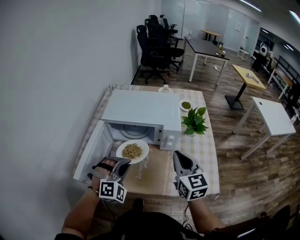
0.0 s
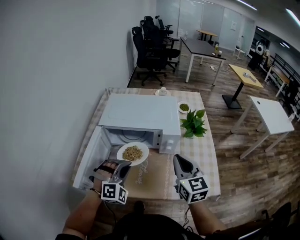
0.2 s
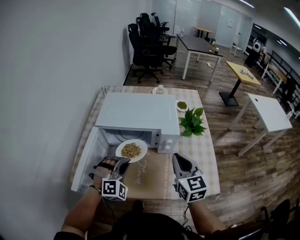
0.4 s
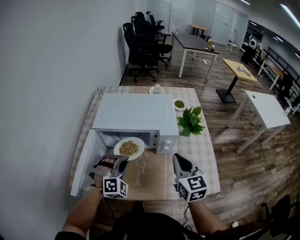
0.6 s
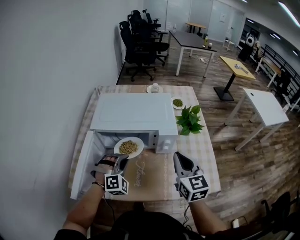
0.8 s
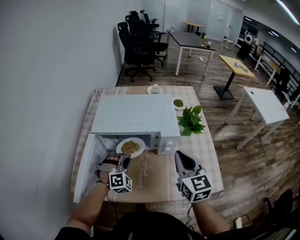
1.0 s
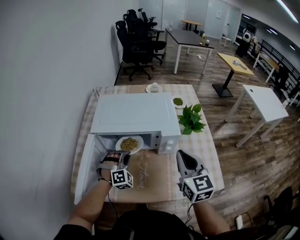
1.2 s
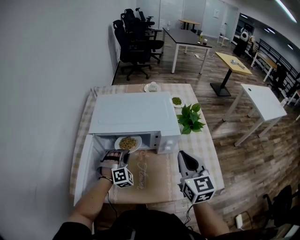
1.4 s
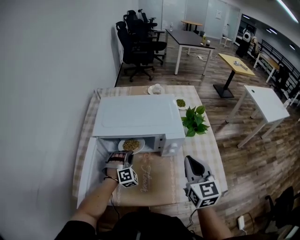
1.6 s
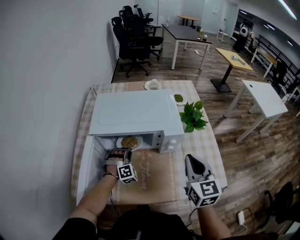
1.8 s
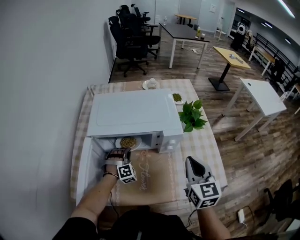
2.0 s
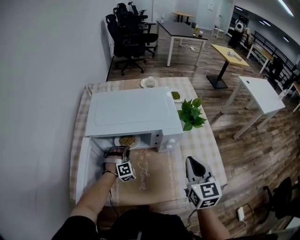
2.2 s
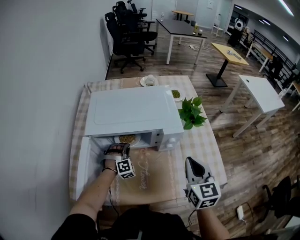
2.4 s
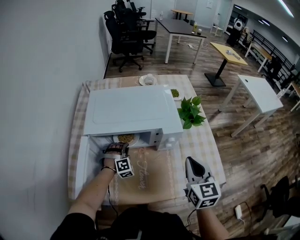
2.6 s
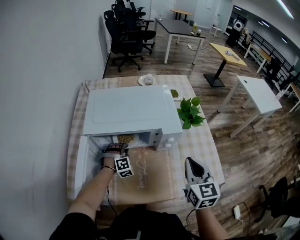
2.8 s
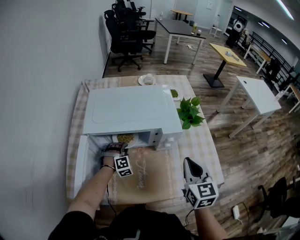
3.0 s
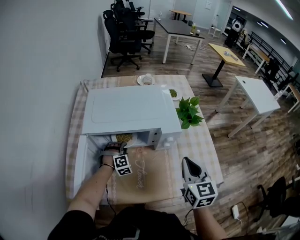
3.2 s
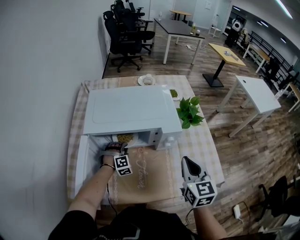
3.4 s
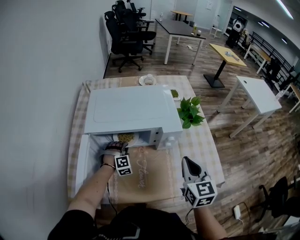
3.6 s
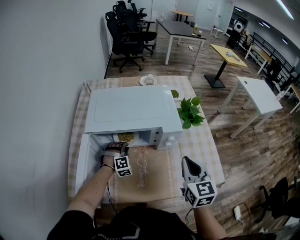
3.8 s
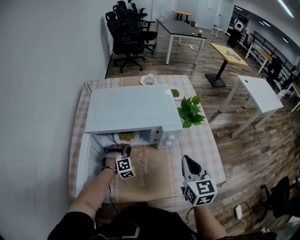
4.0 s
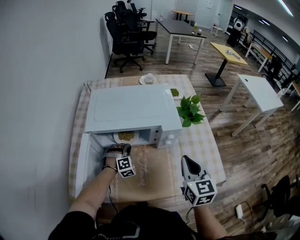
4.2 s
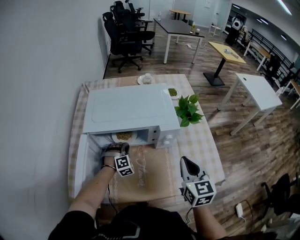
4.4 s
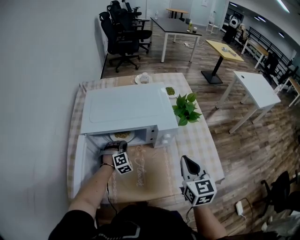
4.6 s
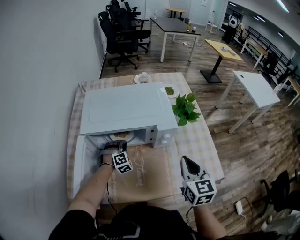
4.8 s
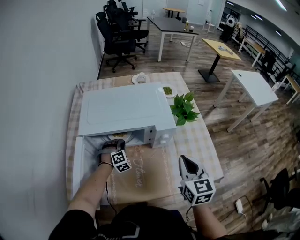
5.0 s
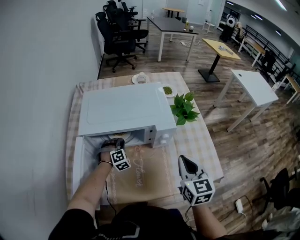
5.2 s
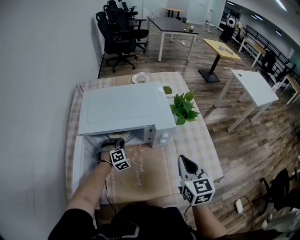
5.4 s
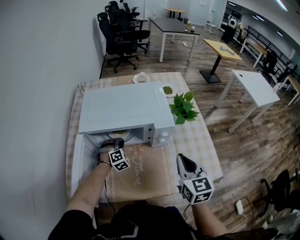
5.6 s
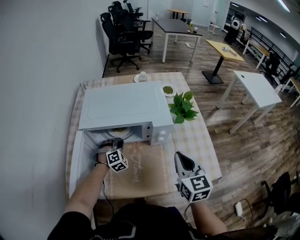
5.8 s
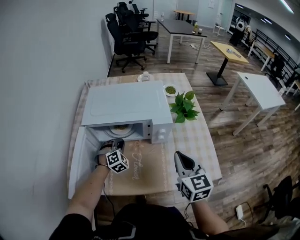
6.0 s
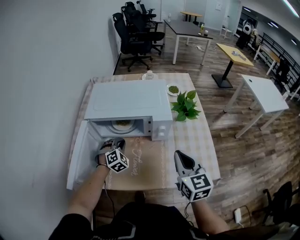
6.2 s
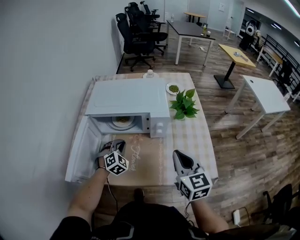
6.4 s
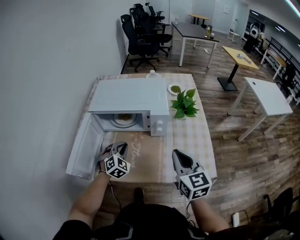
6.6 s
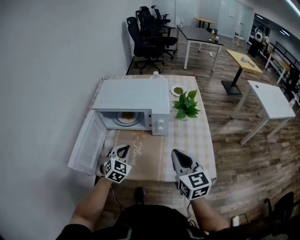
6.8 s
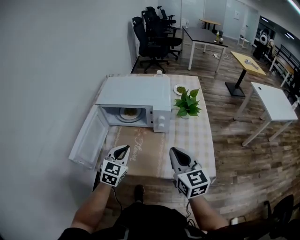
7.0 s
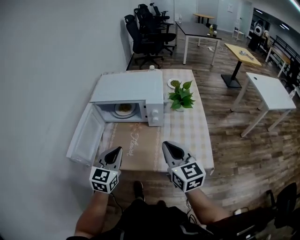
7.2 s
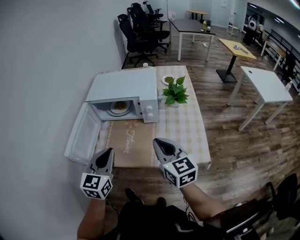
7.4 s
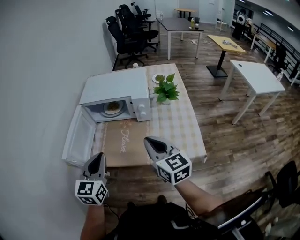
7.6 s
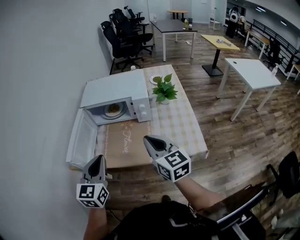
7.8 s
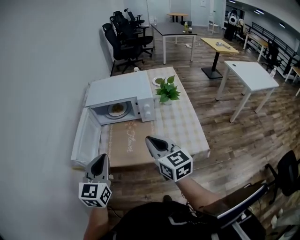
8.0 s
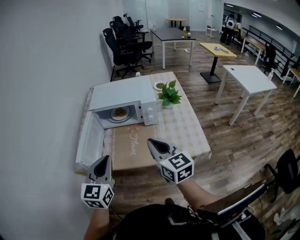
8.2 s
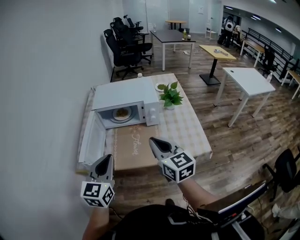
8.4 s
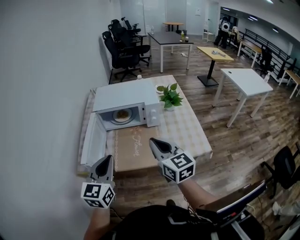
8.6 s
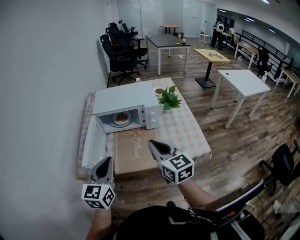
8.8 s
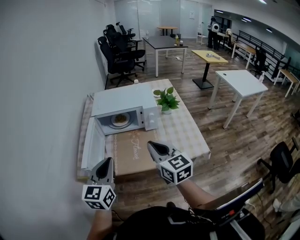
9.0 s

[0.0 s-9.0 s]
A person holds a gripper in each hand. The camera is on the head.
0.0 to 1.6 s: The left gripper moves forward and downward, some 25 cm.
1.6 to 3.0 s: The left gripper moves downward, roughly 10 cm.
3.0 to 4.4 s: The grippers make only small movements.
4.4 to 6.0 s: The grippers move only a little.
6.0 to 7.6 s: The right gripper goes some 15 cm backward and upward, and rotates some 20 degrees. The left gripper is displaced backward and upward by roughly 40 cm, and twists about 60 degrees counterclockwise, seen from behind.
7.6 to 9.0 s: The left gripper shifts approximately 10 cm to the left and upward. The right gripper moves to the left, about 10 cm.

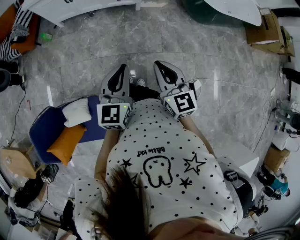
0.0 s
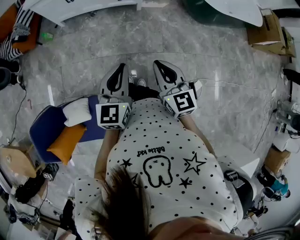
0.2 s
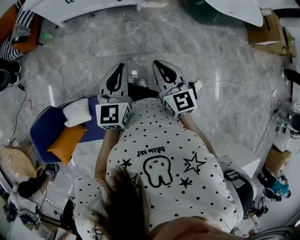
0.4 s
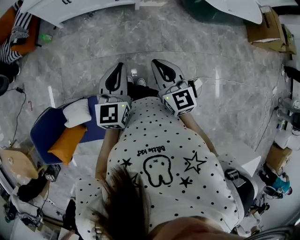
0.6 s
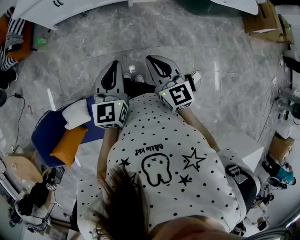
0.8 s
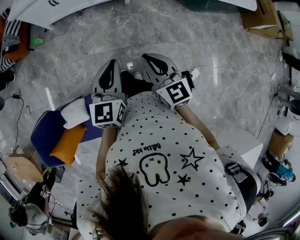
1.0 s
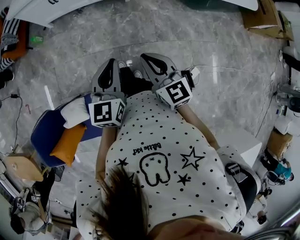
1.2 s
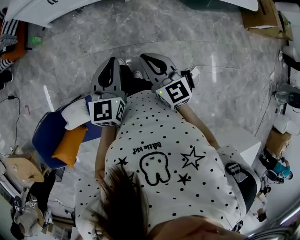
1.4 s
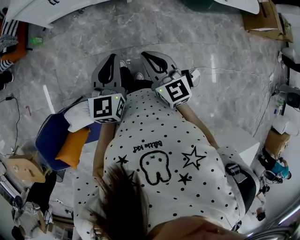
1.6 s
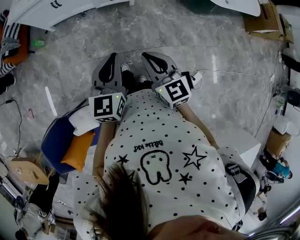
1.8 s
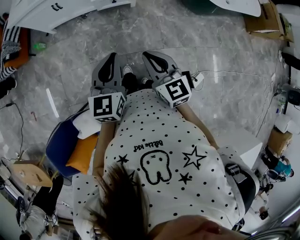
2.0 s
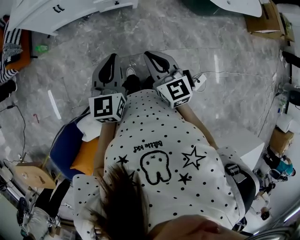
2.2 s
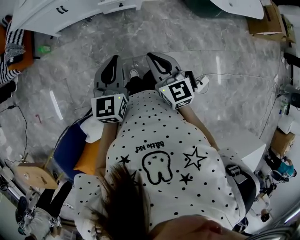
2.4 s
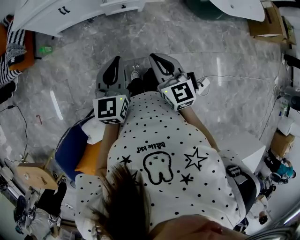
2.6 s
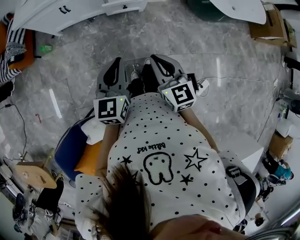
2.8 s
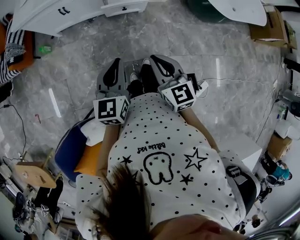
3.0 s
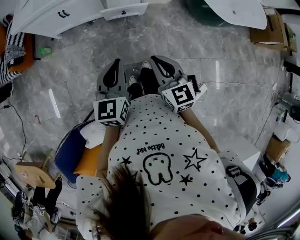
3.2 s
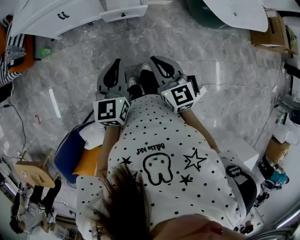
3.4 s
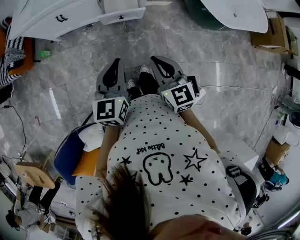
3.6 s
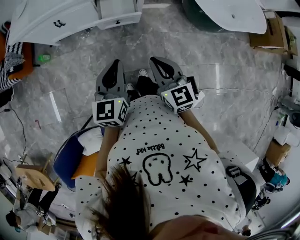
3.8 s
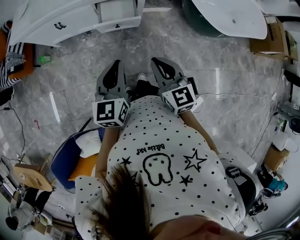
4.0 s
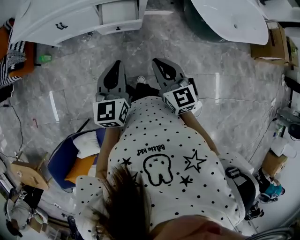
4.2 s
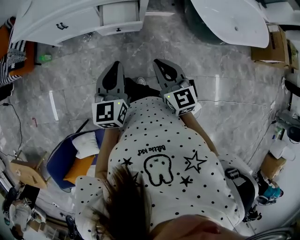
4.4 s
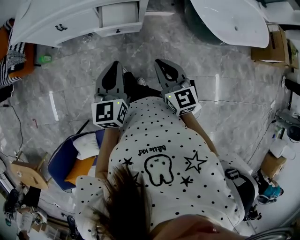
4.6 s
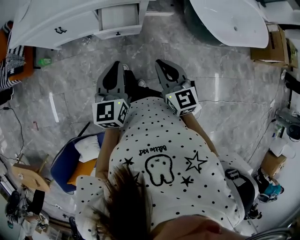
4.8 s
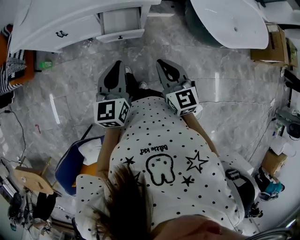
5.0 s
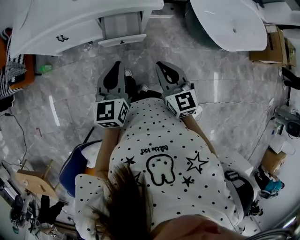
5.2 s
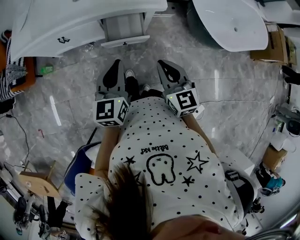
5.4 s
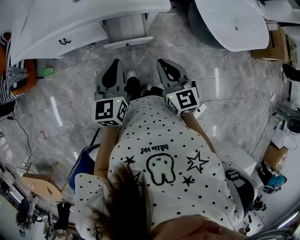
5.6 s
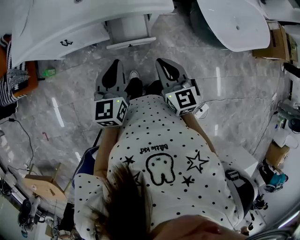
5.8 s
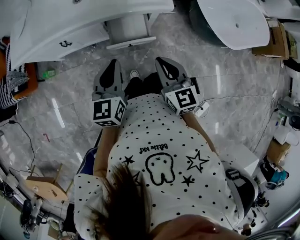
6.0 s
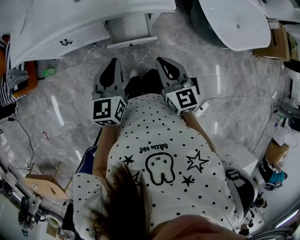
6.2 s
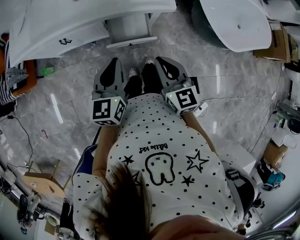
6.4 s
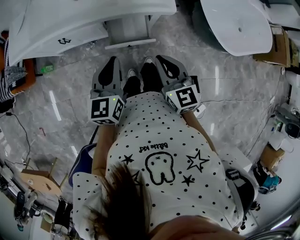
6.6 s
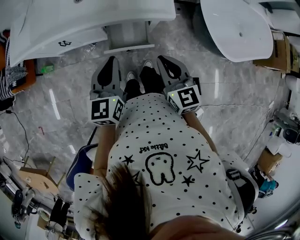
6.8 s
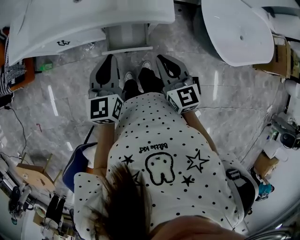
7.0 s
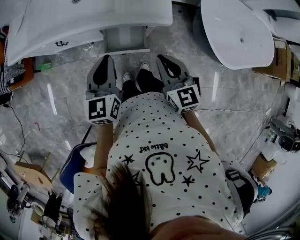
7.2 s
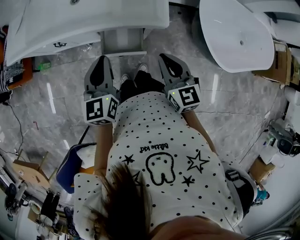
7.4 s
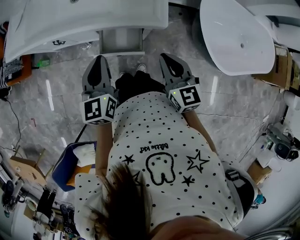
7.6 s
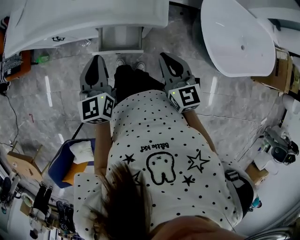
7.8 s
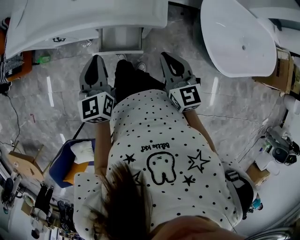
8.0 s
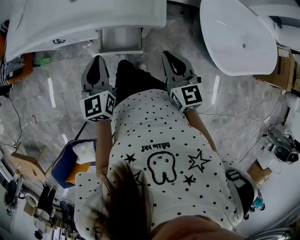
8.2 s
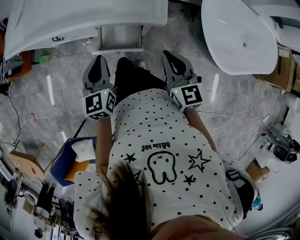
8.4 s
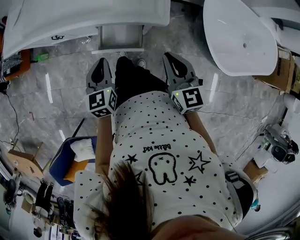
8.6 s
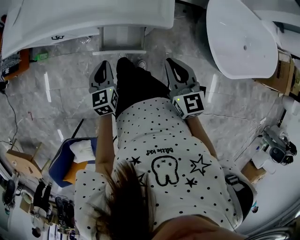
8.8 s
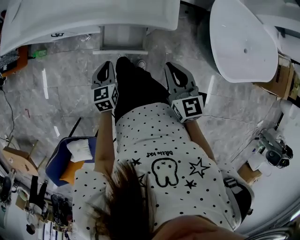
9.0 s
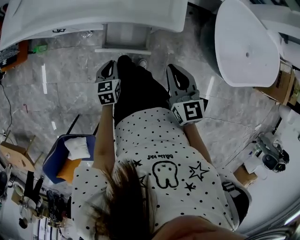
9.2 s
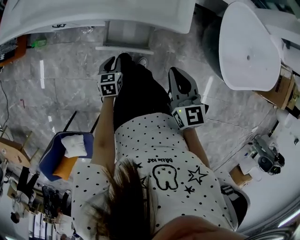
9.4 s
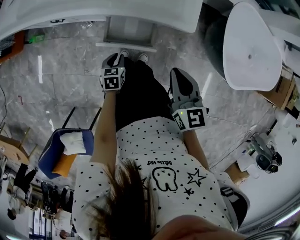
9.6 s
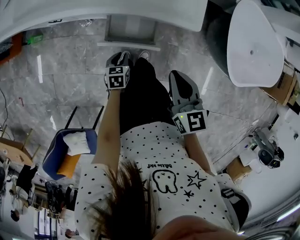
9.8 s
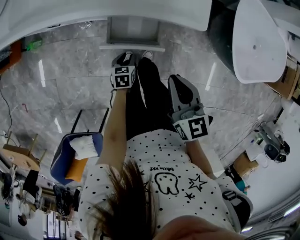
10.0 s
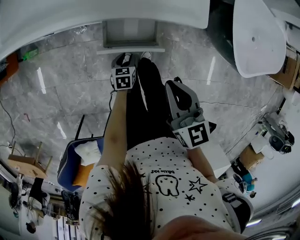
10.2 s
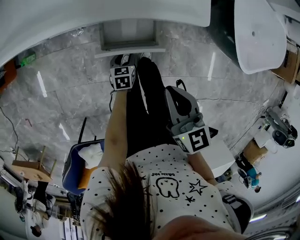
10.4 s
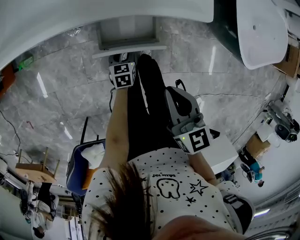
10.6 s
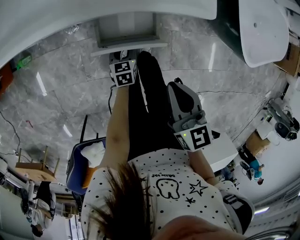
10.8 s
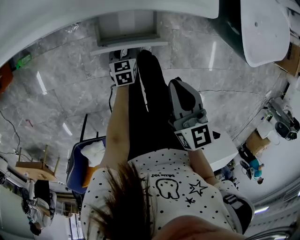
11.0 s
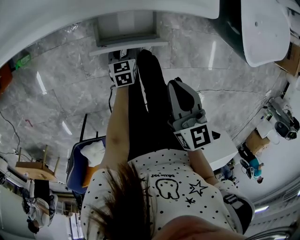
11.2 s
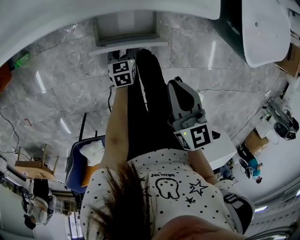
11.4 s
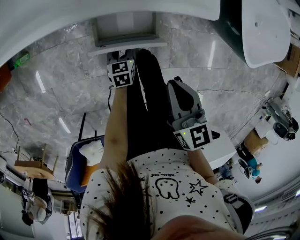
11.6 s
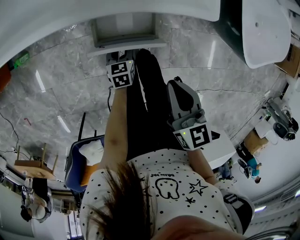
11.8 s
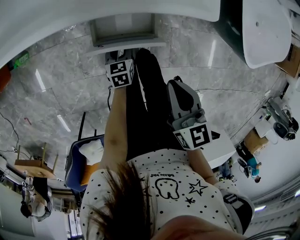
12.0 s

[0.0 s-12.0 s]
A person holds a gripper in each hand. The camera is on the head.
0.0 to 1.6 s: The two grippers go roughly 10 cm forward.
1.6 to 3.0 s: The right gripper is displaced forward by approximately 15 cm, while the left gripper shifts some 15 cm forward and to the left.
3.0 to 4.4 s: The left gripper shifts about 15 cm forward and to the right. Meanwhile the right gripper moves to the right and forward, roughly 15 cm.
4.4 to 6.0 s: The two grippers go approximately 20 cm forward and to the left.
6.0 to 7.6 s: The left gripper heads forward and to the right, covering approximately 10 cm. Meanwhile the right gripper is displaced to the right and forward by about 15 cm.
7.6 to 9.0 s: The left gripper travels downward by some 20 cm, and rotates about 20 degrees.
9.0 to 10.4 s: The left gripper is displaced downward by about 25 cm, changes its angle by some 20 degrees, and opens its fingers, while the right gripper travels to the left and downward by roughly 10 cm.
10.4 to 12.0 s: The right gripper travels downward by roughly 5 cm.

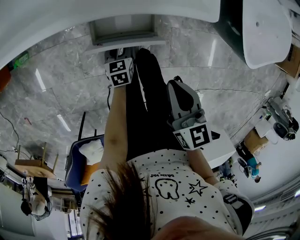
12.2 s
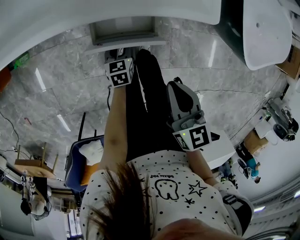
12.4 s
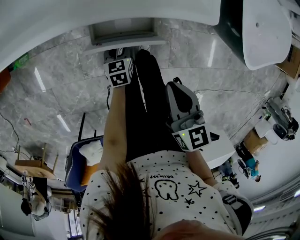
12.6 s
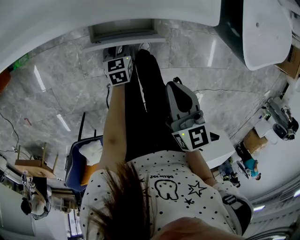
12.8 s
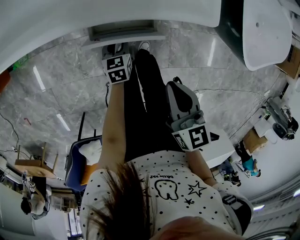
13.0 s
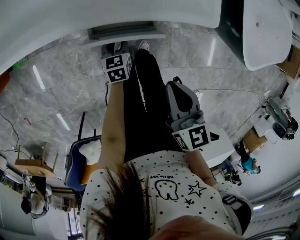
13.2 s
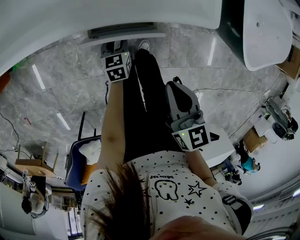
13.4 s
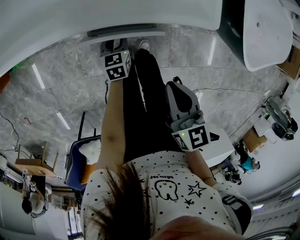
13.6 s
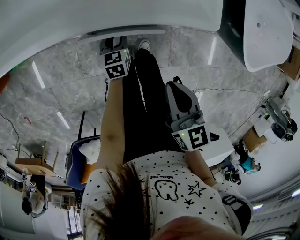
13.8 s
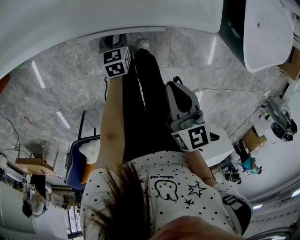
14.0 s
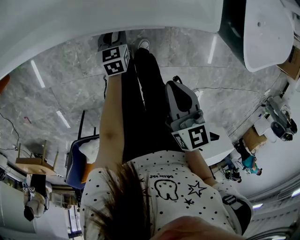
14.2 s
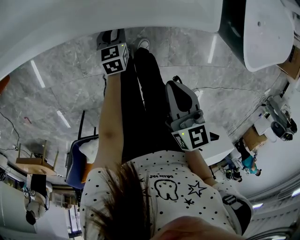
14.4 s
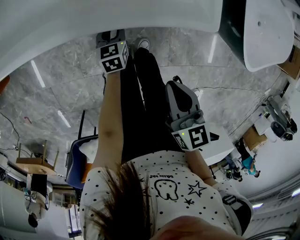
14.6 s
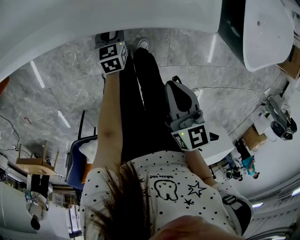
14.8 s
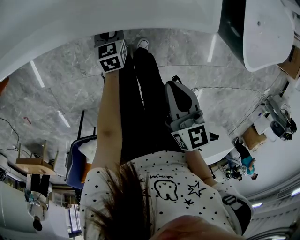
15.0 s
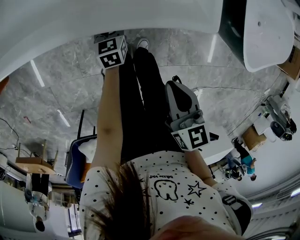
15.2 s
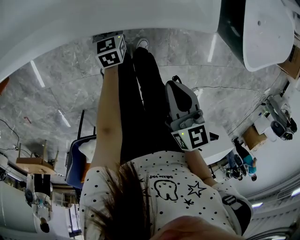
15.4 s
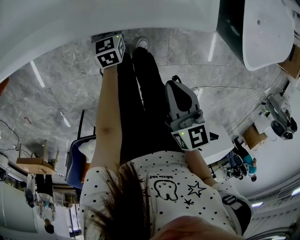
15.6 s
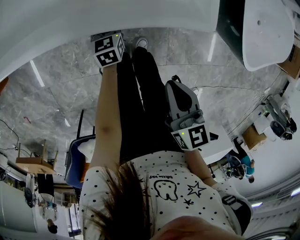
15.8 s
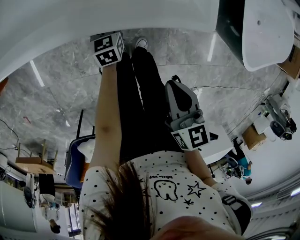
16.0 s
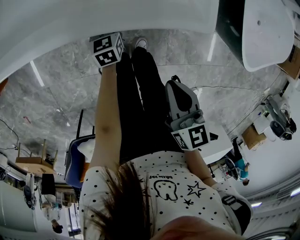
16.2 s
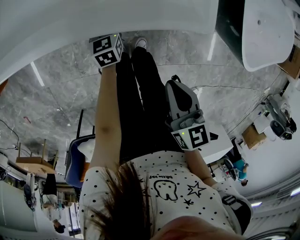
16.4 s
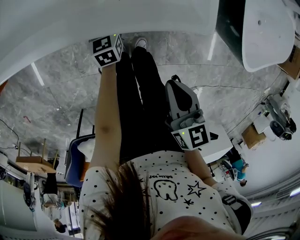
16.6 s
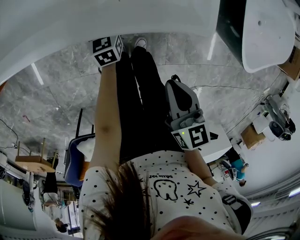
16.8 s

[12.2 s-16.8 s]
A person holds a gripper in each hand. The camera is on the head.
12.2 to 13.8 s: The left gripper heads forward, covering some 5 cm.
13.8 to 15.2 s: The left gripper is displaced forward by some 5 cm.
15.2 to 16.8 s: The grippers make only small movements.
